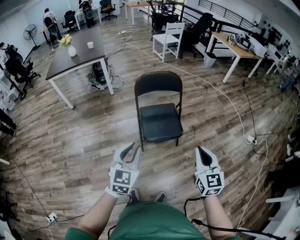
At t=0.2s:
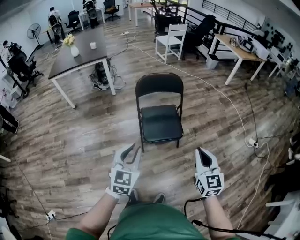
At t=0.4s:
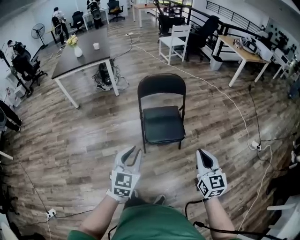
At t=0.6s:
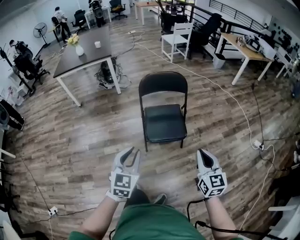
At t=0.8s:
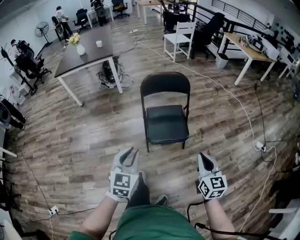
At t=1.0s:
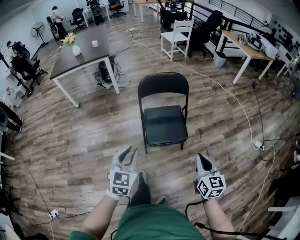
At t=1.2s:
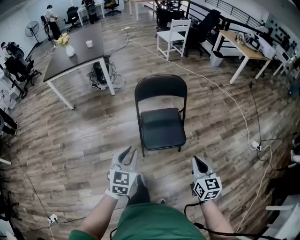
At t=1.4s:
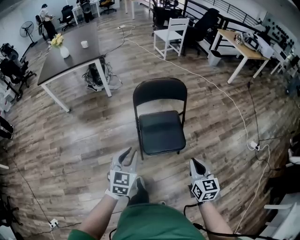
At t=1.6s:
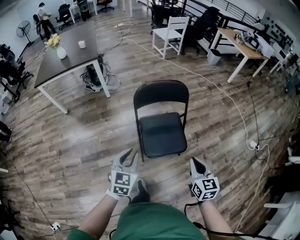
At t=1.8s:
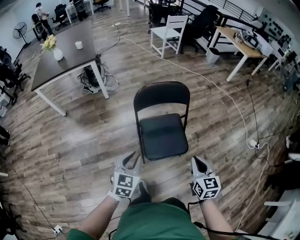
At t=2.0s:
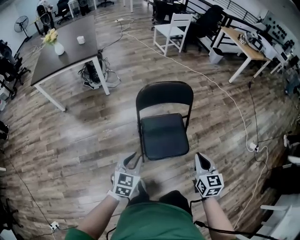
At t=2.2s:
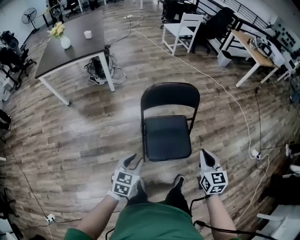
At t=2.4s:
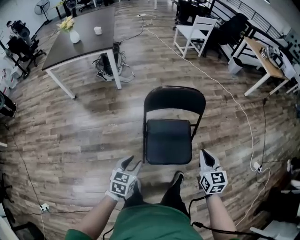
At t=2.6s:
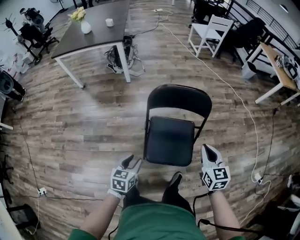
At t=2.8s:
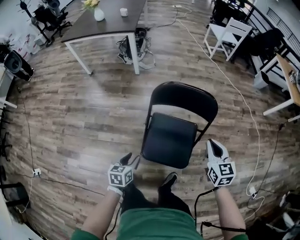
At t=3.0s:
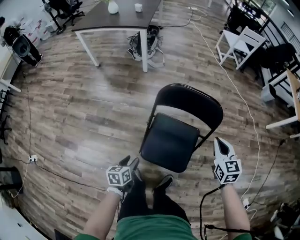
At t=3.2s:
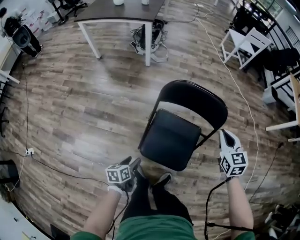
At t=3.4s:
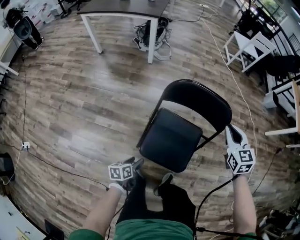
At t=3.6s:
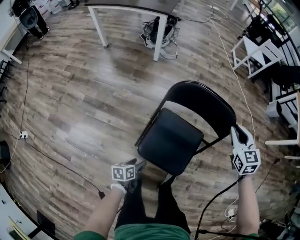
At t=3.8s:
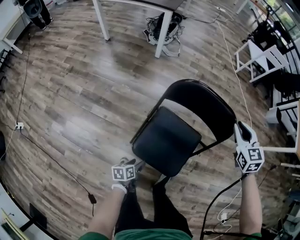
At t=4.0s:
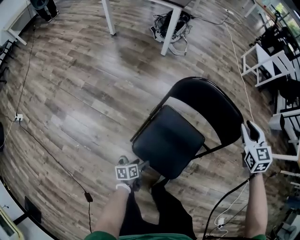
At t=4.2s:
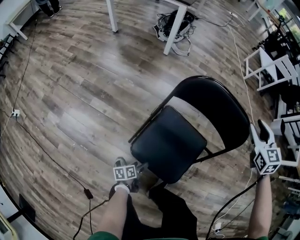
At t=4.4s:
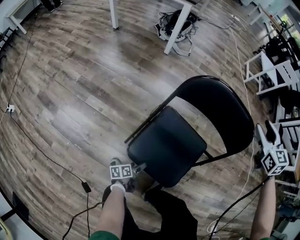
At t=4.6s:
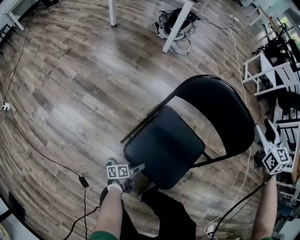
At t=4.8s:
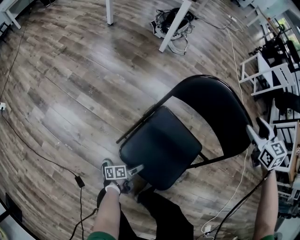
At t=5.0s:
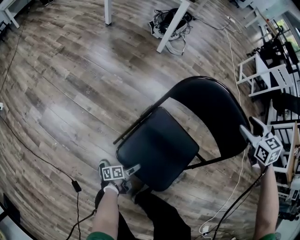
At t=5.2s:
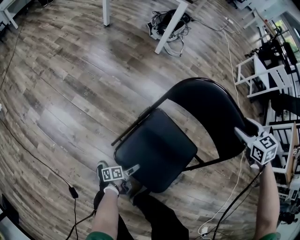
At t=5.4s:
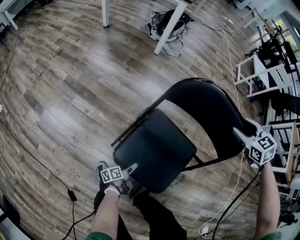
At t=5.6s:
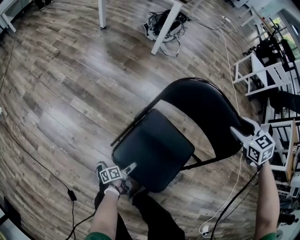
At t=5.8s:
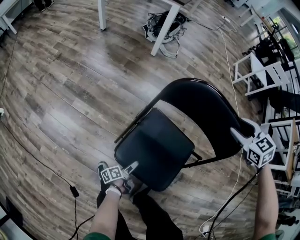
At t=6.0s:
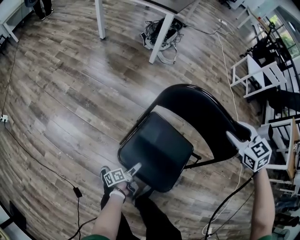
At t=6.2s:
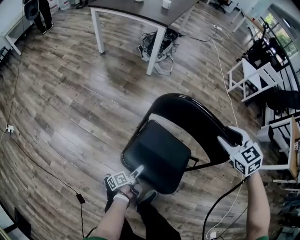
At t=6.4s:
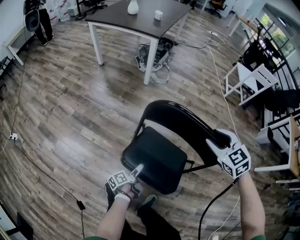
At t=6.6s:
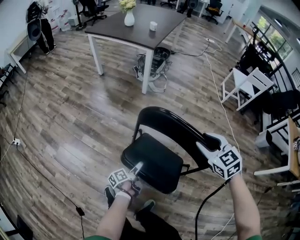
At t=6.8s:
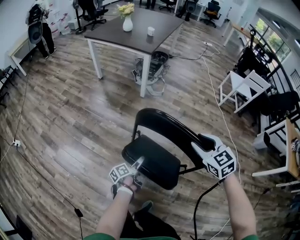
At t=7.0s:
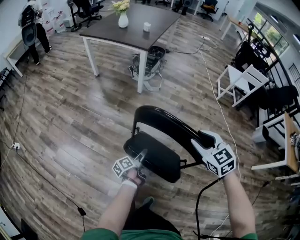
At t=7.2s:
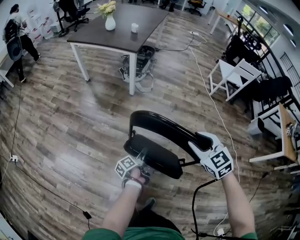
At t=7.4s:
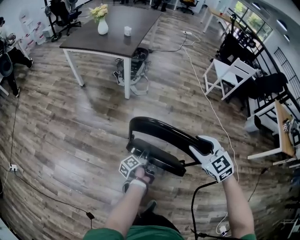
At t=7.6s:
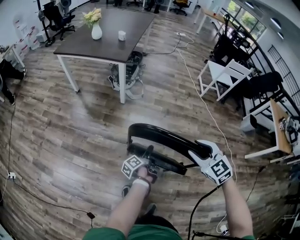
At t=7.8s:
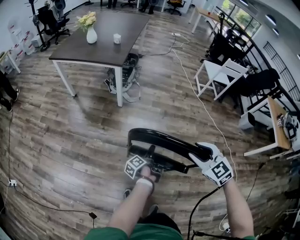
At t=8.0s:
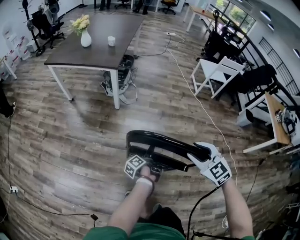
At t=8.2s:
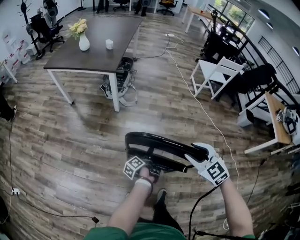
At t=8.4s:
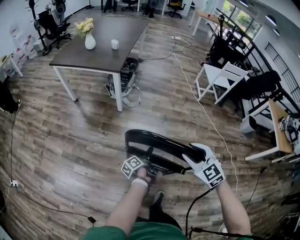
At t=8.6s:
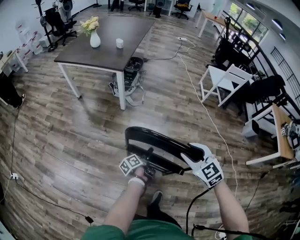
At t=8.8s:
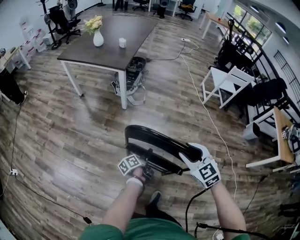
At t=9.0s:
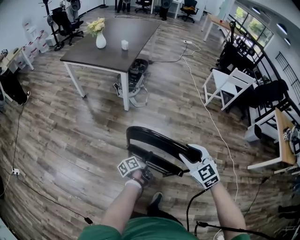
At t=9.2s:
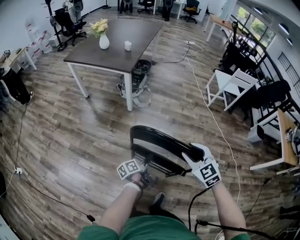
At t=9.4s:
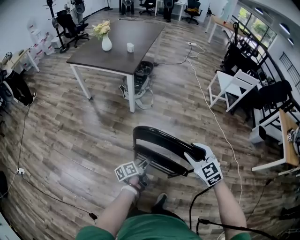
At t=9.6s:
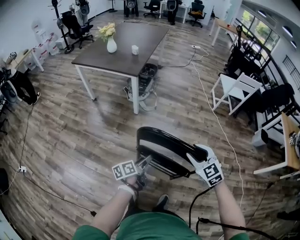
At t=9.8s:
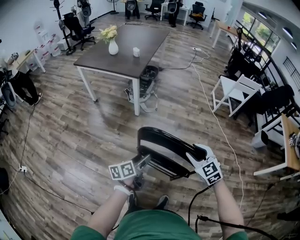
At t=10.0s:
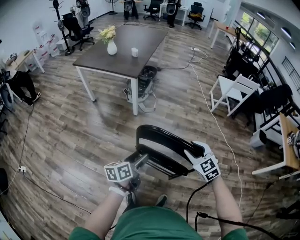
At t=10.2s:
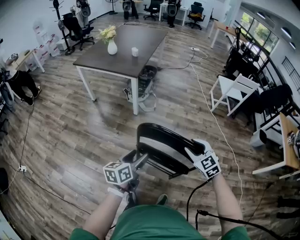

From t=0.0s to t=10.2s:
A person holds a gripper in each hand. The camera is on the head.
From t=0.0s to t=1.4s: Both grippers travel together forward and downward, about 20 cm.
From t=1.4s to t=3.0s: The right gripper ends up roughly 40 cm from where it was, and swivels some 30 degrees; the left gripper travels downward by approximately 25 cm, and twists approximately 50 degrees counterclockwise, seen from behind.
From t=3.0s to t=4.4s: The left gripper shifts about 35 cm downward, twists roughly 40 degrees counterclockwise, seen from behind, and opens. The right gripper travels forward by approximately 25 cm, and opens.
From t=4.4s to t=5.8s: The right gripper goes roughly 5 cm downward, and rotates about 30 degrees, while the left gripper moves forward, about 5 cm, and turns by some 20 degrees.
From t=5.8s to t=7.2s: The right gripper is displaced upward by approximately 15 cm. Meanwhile the left gripper travels upward and forward by about 35 cm.
From t=7.2s to t=8.8s: The left gripper is displaced forward and to the right by roughly 15 cm, while the right gripper travels forward by roughly 5 cm.
From t=8.8s to t=10.2s: The left gripper travels upward by about 20 cm, and rolls clockwise, seen from behind, by some 50 degrees.

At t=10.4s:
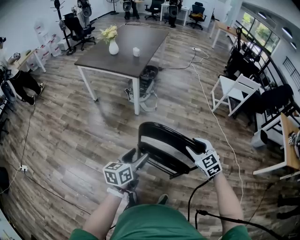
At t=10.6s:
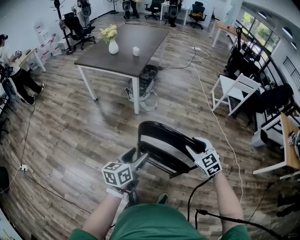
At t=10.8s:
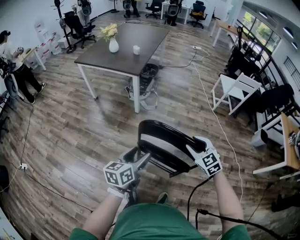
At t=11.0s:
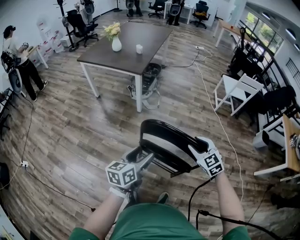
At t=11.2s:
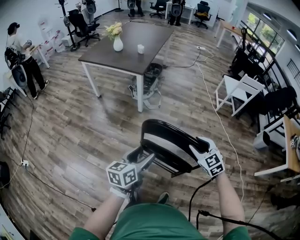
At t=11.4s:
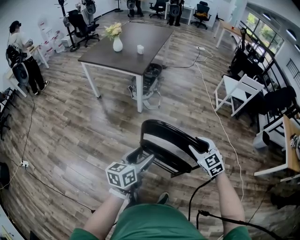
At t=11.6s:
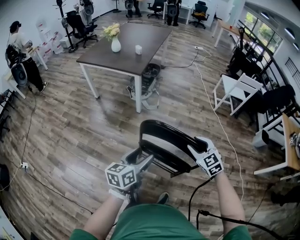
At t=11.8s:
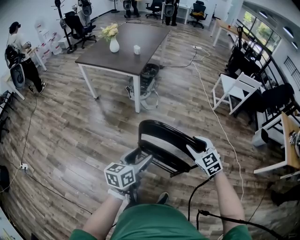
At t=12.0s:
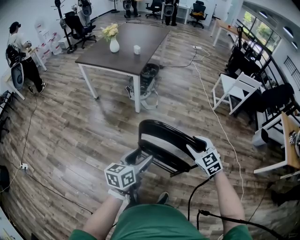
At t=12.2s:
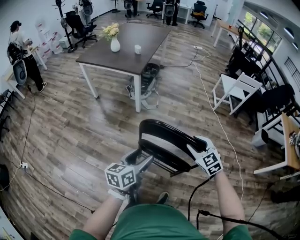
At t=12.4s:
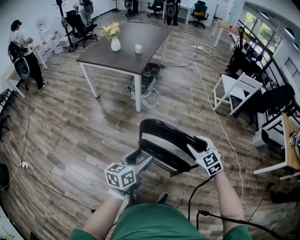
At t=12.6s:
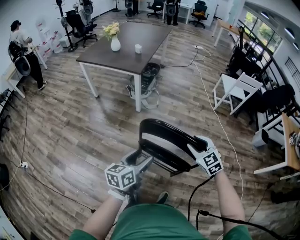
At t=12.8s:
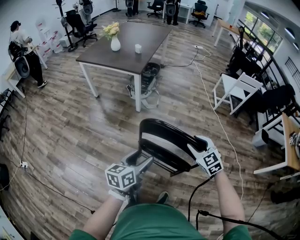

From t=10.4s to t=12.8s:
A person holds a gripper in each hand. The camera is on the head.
From t=10.4s to t=12.8s: The grippers stay close to where they were, moving slightly.

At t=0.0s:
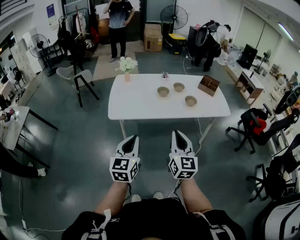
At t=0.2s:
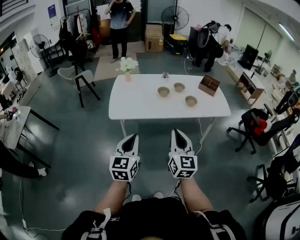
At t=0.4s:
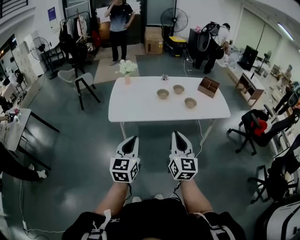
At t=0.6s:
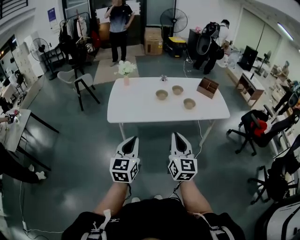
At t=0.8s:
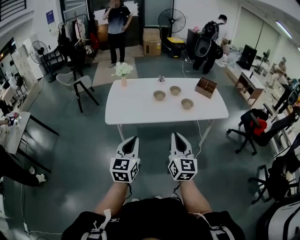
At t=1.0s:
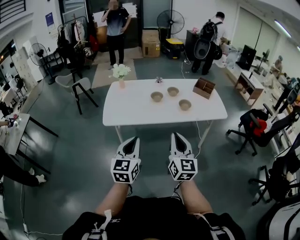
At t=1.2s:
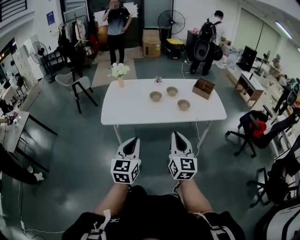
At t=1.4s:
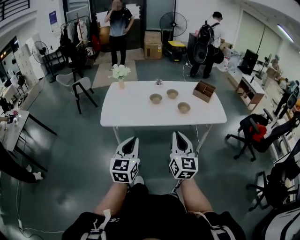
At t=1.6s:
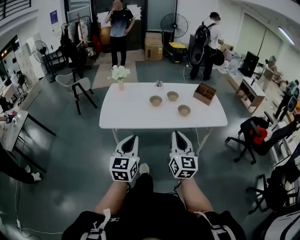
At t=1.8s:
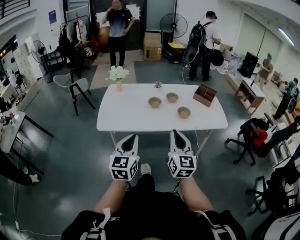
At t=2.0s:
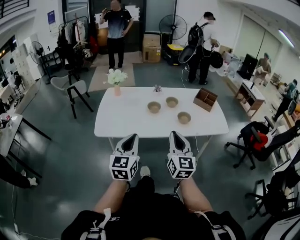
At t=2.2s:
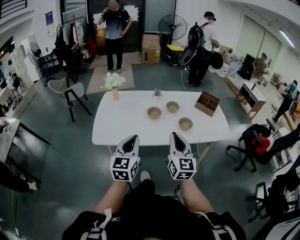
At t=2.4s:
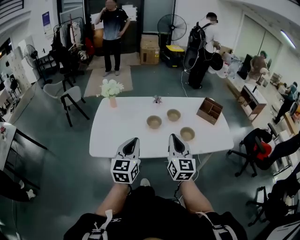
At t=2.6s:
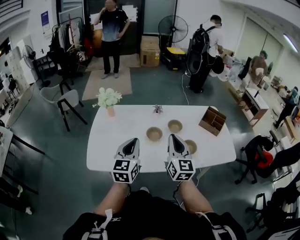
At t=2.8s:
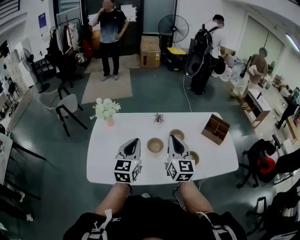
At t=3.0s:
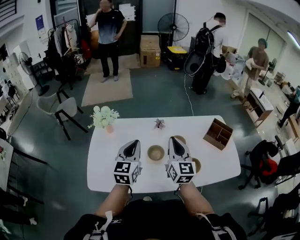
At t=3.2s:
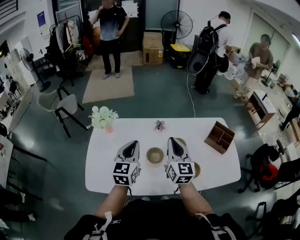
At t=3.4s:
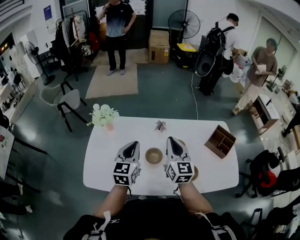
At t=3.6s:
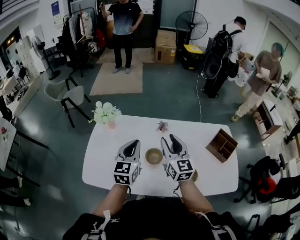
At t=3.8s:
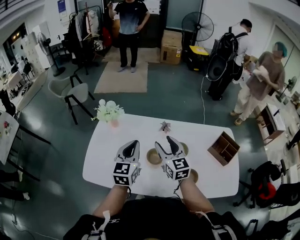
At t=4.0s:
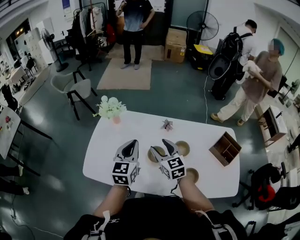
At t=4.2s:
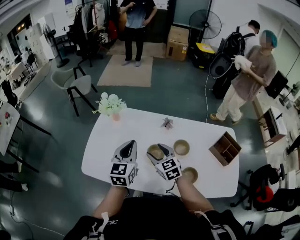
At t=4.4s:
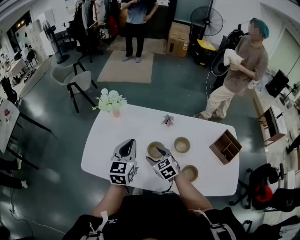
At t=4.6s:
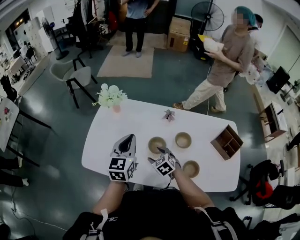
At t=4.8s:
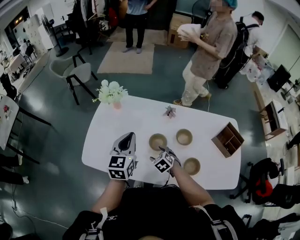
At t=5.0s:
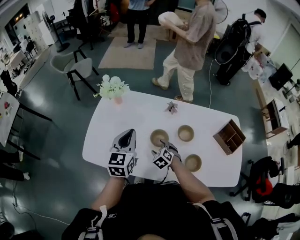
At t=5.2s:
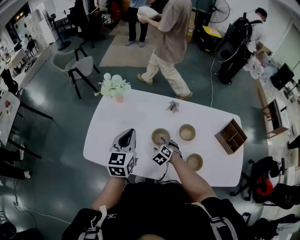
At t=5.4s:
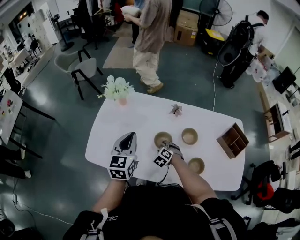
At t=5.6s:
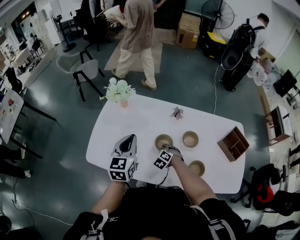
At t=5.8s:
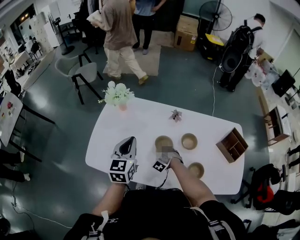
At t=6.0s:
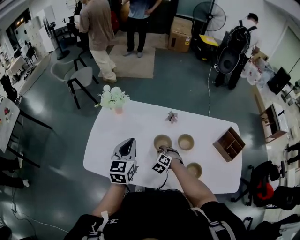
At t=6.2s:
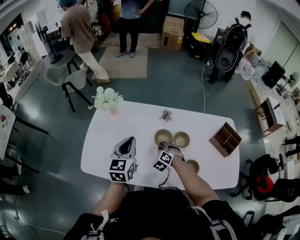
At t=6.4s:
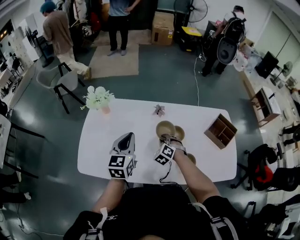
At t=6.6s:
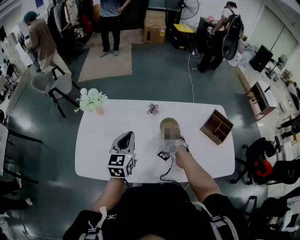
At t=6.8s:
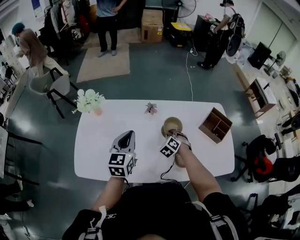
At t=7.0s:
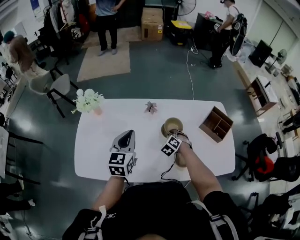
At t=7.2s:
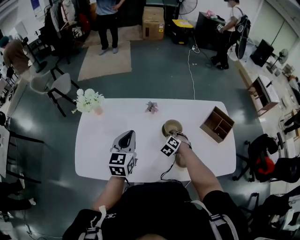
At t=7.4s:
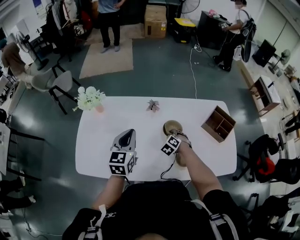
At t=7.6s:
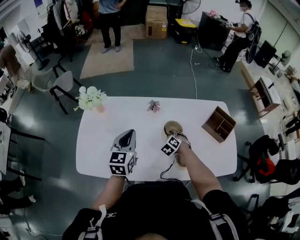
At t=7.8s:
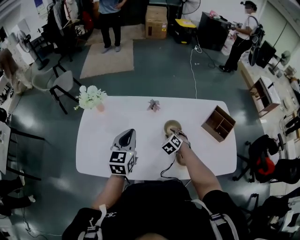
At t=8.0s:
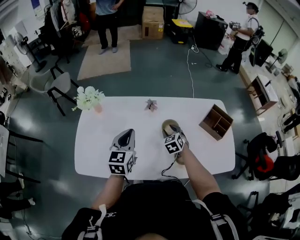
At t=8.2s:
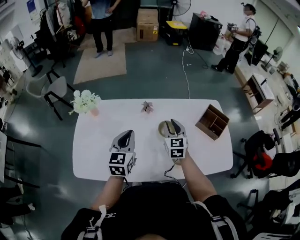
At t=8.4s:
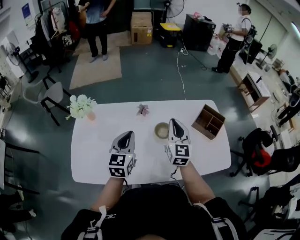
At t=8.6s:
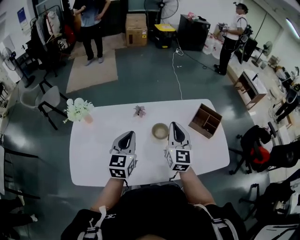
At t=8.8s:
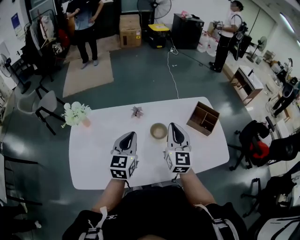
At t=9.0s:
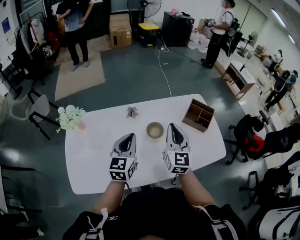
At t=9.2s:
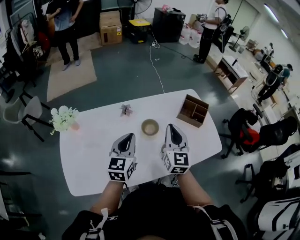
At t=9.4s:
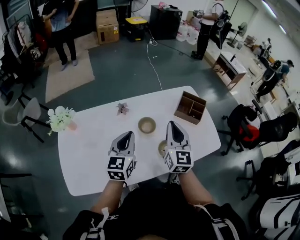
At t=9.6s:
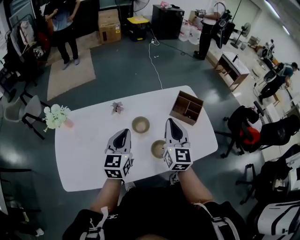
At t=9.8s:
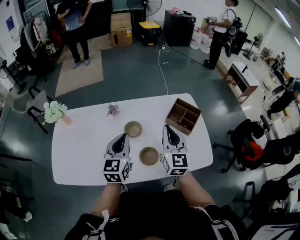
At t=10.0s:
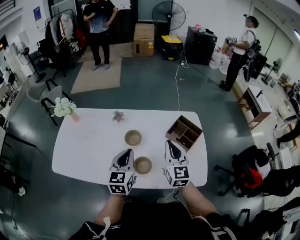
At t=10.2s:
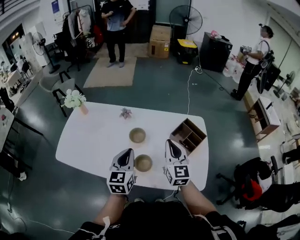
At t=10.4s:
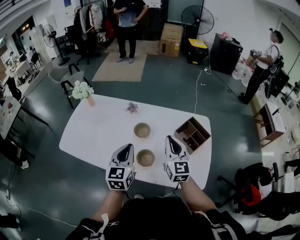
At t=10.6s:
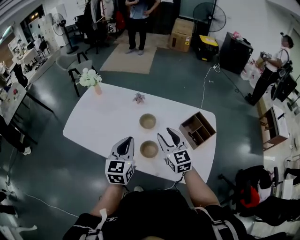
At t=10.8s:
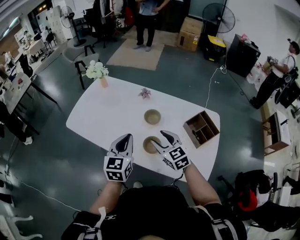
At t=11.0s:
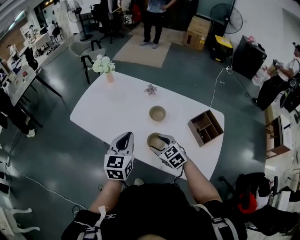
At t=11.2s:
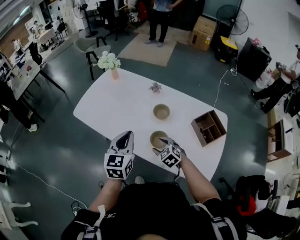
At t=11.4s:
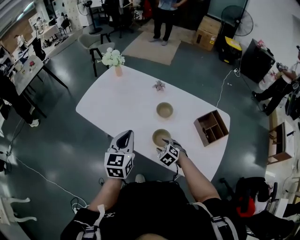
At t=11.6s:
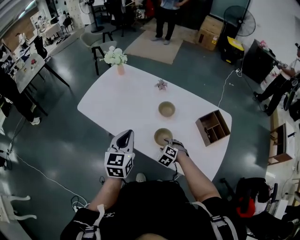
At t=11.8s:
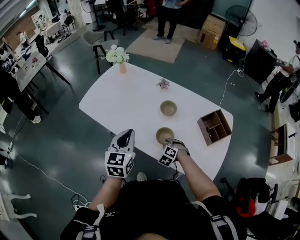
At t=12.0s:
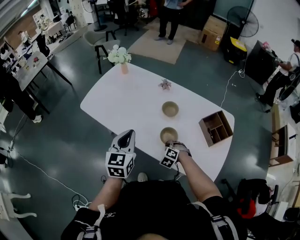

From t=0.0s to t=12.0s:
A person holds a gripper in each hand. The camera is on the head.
From t=0.0s to t=1.6s: Both grippers travel together to the right and forward, approximately 10 cm.
From t=1.6s to t=3.0s: The two grippers travel together, forward, approximately 60 cm.
From t=3.0s to t=4.4s: The left gripper changes place by about 5 cm; the right gripper moves downward, roughly 20 cm, tilts its fingers approximately 40 degrees downward, and opens up.
From t=4.4s to t=6.0s: The right gripper travels downward by roughly 10 cm, changes its angle by about 40 degrees, and closes up.
From t=6.0s to t=7.6s: The left gripper is displaced to the right by approximately 10 cm; the right gripper travels to the right and forward by roughly 15 cm.
From t=7.6s to t=9.0s: The right gripper moves upward, approximately 30 cm, and tilts its fingers some 60 degrees upward; the left gripper goes about 5 cm to the right.
From t=9.0s to t=10.4s: The left gripper moves some 25 cm, and changes its angle by roughly 30 degrees. Meanwhile the right gripper changes place by some 20 cm, and turns by approximately 30 degrees.
From t=10.4s to t=12.0s: The right gripper goes about 30 cm downward, points its fingers some 60 degrees further downward, and opens, then closes once more; the left gripper moves some 15 cm.
